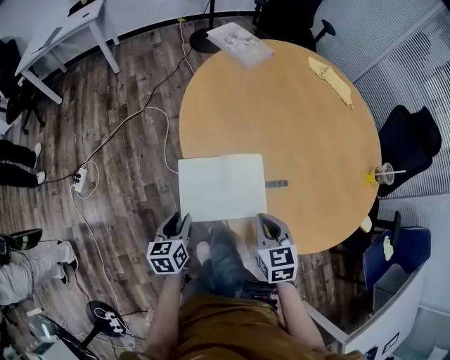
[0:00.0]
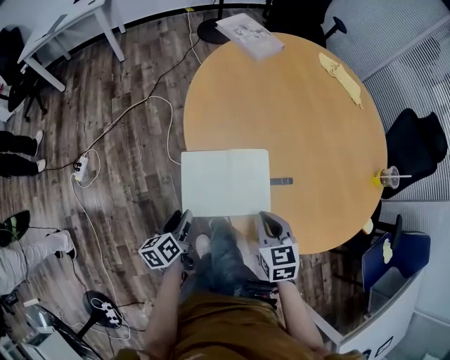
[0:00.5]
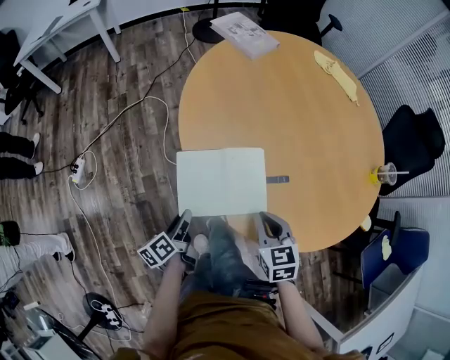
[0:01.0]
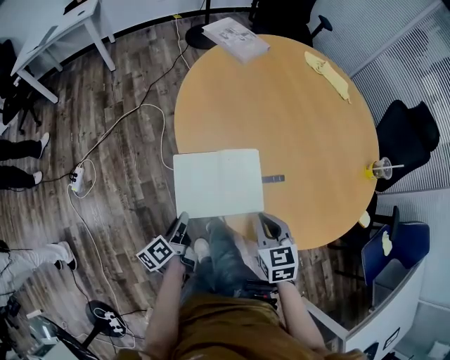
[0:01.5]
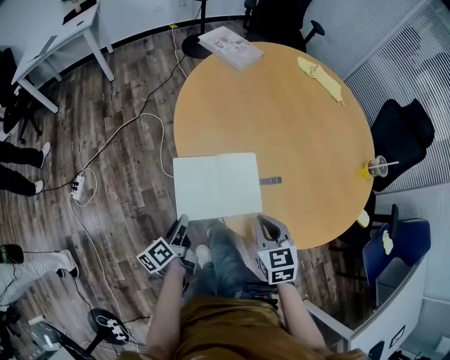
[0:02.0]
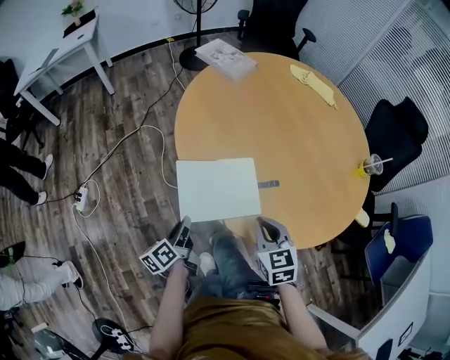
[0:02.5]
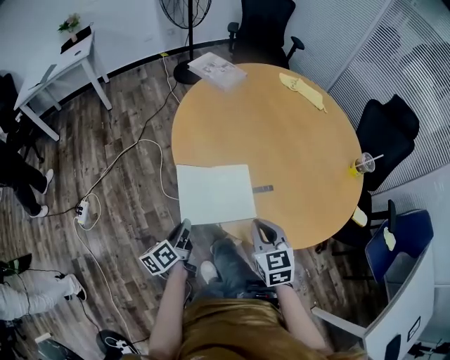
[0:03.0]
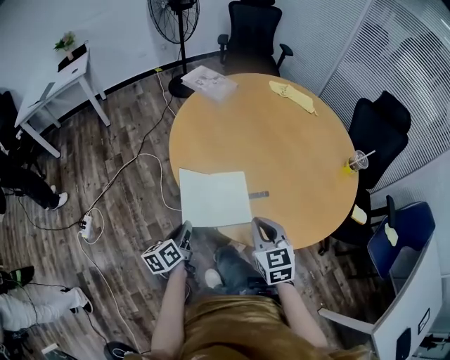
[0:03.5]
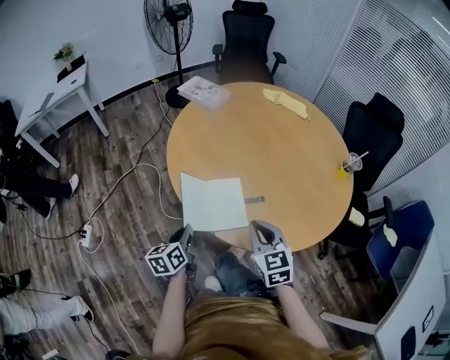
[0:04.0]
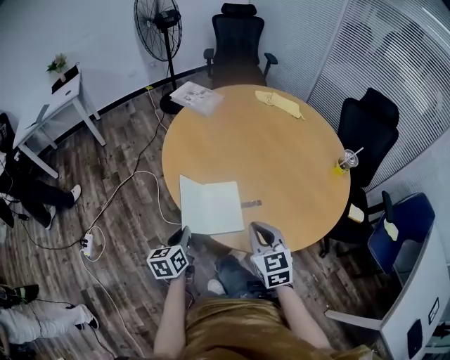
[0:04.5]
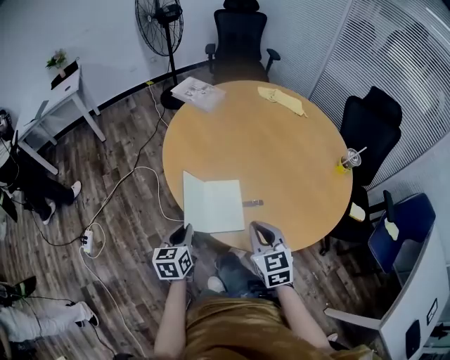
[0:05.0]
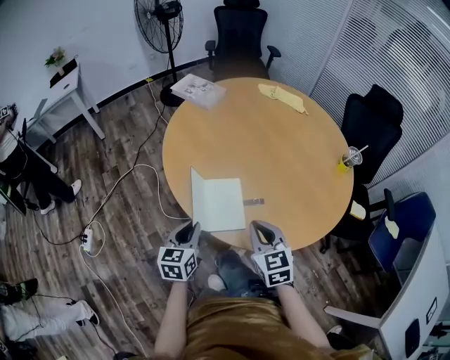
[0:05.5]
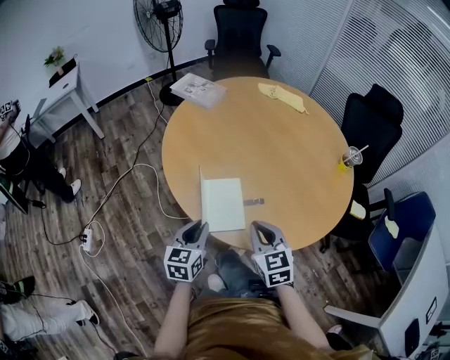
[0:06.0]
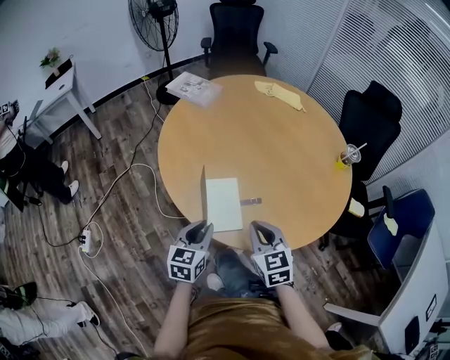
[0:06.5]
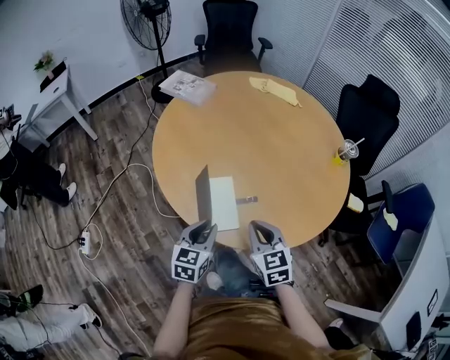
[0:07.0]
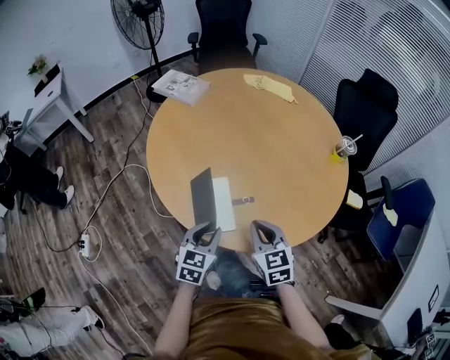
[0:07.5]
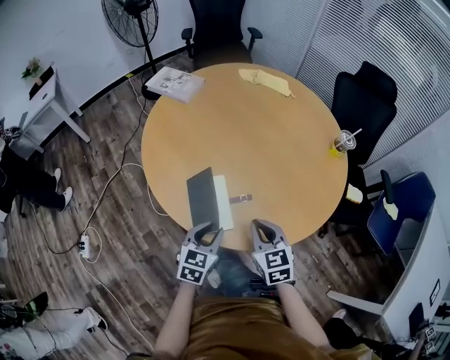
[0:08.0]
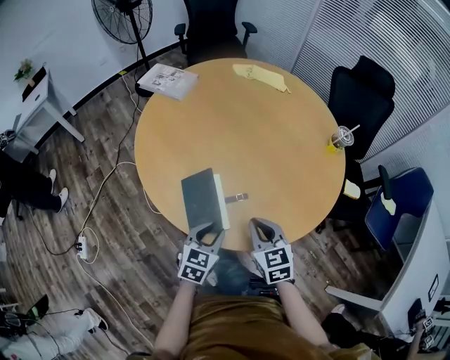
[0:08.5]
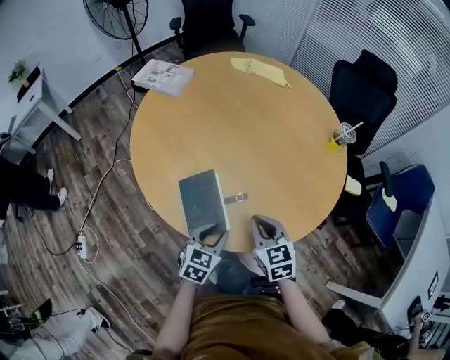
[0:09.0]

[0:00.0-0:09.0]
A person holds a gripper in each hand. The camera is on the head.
0:00.0 to 0:02.0: The left gripper changes its angle by roughly 40 degrees.
0:02.0 to 0:04.5: Both grippers travel together upward, about 10 cm. The left gripper twists some 40 degrees clockwise, seen from behind.
0:04.5 to 0:07.0: The left gripper heads to the right, covering some 10 cm, and swivels roughly 30 degrees.
0:07.0 to 0:09.0: The right gripper moves approximately 5 cm, while the left gripper heads to the right and downward, covering some 10 cm, and rotates about 20 degrees.

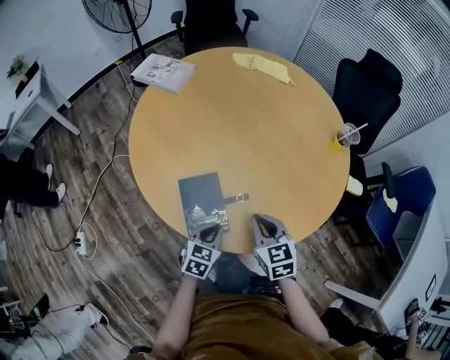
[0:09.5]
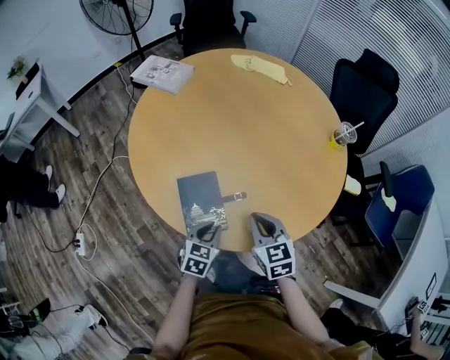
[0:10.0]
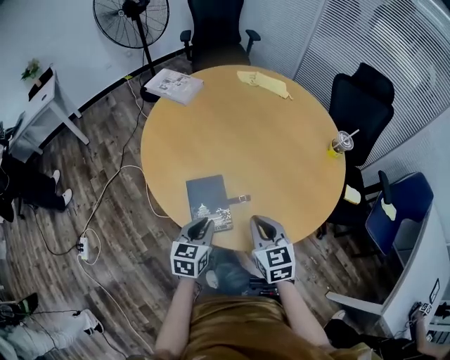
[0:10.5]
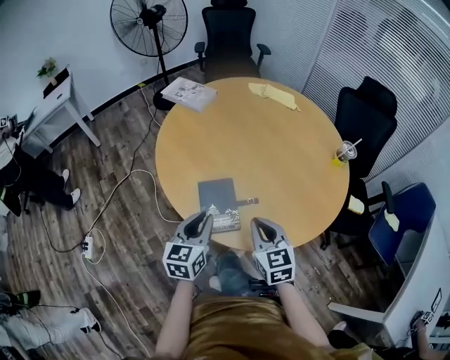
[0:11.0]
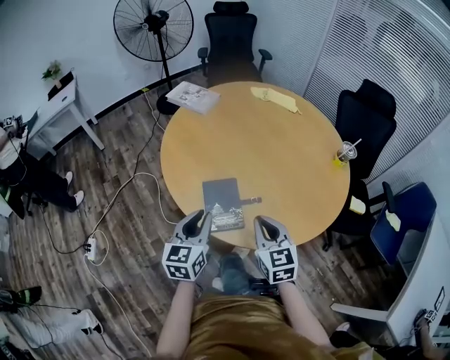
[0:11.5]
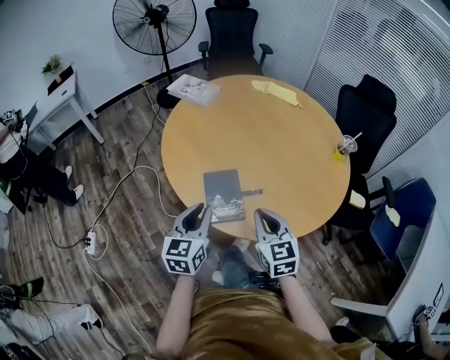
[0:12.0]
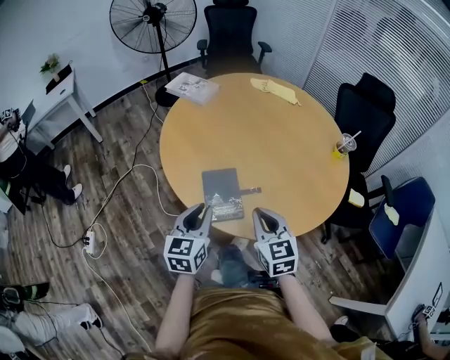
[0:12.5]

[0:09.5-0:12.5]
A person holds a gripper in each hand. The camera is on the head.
0:09.5 to 0:11.0: The right gripper travels upward and backward by approximately 10 cm; the left gripper is displaced upward and to the left by approximately 20 cm, and turns by approximately 30 degrees.
0:11.0 to 0:12.5: The grippers make only small movements.

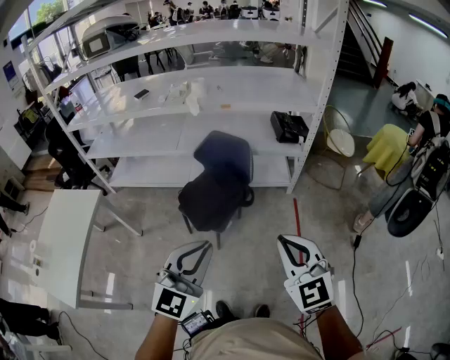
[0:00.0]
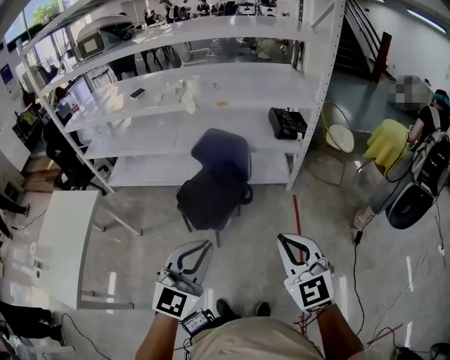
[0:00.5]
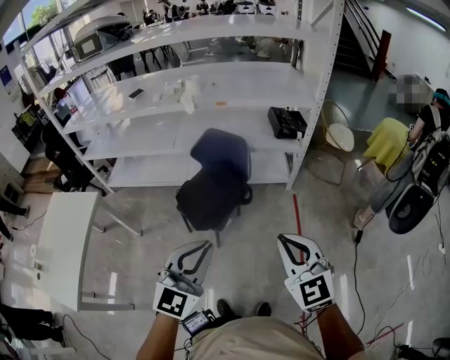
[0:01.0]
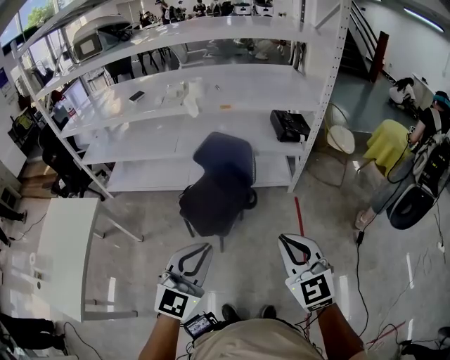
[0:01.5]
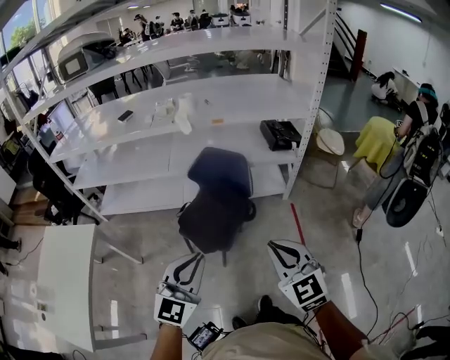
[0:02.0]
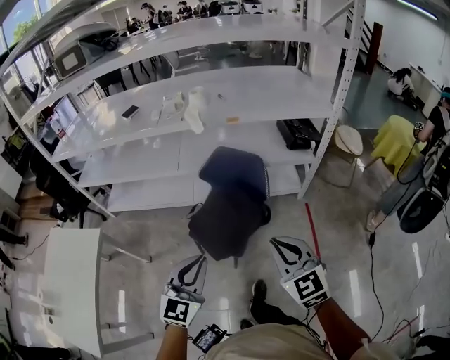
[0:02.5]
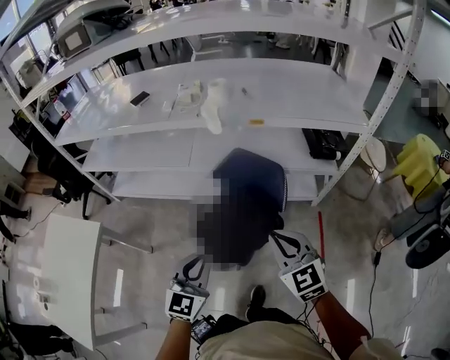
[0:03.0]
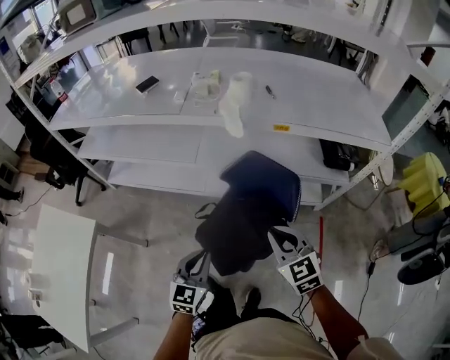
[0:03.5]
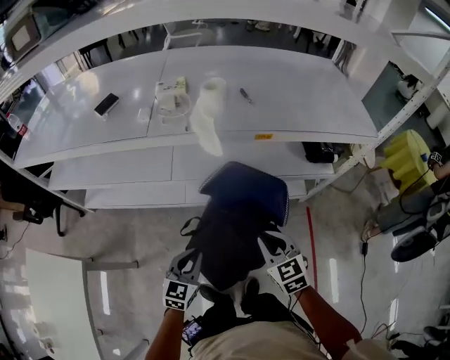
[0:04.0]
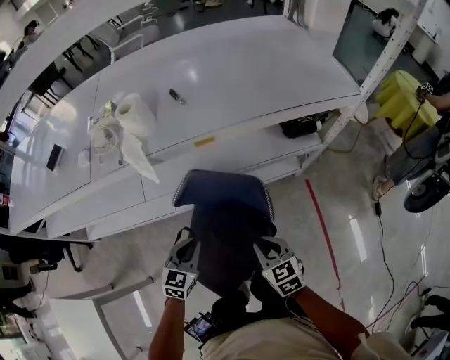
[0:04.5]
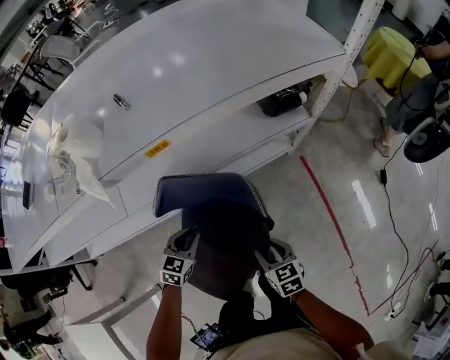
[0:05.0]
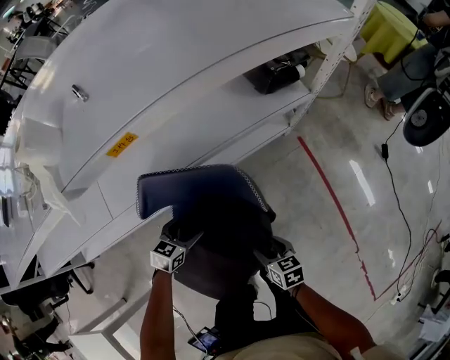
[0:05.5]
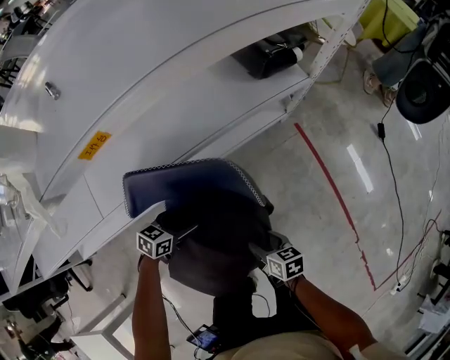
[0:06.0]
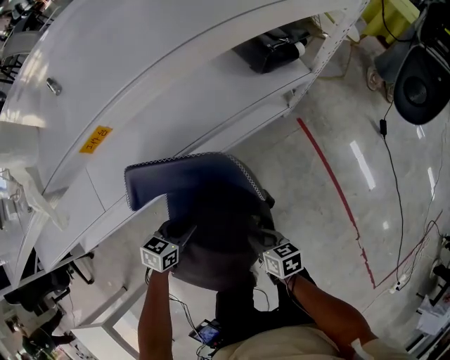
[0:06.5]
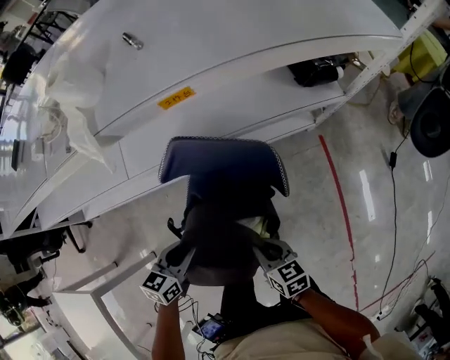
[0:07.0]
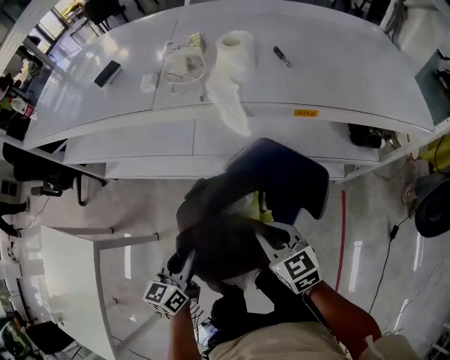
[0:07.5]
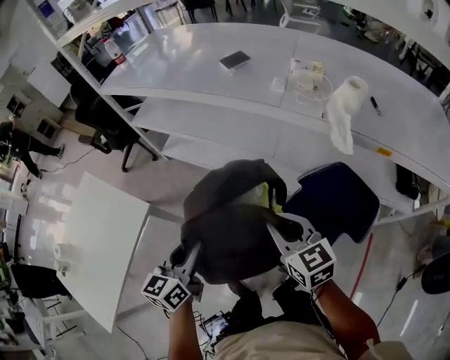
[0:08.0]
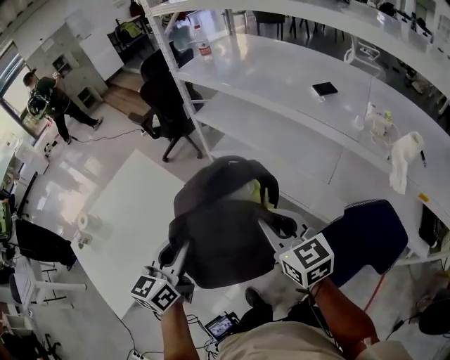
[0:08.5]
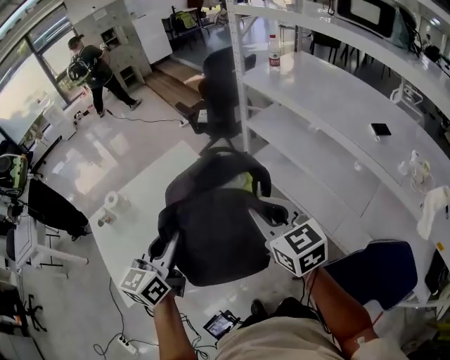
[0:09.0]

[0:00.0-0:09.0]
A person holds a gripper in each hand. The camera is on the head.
0:00.0 to 0:02.0: Both grippers move to the left and forward, some 10 cm.
0:02.0 to 0:04.5: The pair of grippers is taken forward, some 40 cm. The grippers both shift downward by some 30 cm. The right gripper swivels about 30 degrees, while the left gripper turns by roughly 30 degrees.
0:04.5 to 0:07.0: Both grippers move downward and backward, some 10 cm. The right gripper turns by about 20 degrees, and opens, then closes once more. The left gripper swivels roughly 20 degrees, and opens, then closes again.
0:07.0 to 0:09.0: The pair of grippers is taken some 80 cm. The left gripper turns by roughly 80 degrees; the right gripper turns by some 80 degrees.

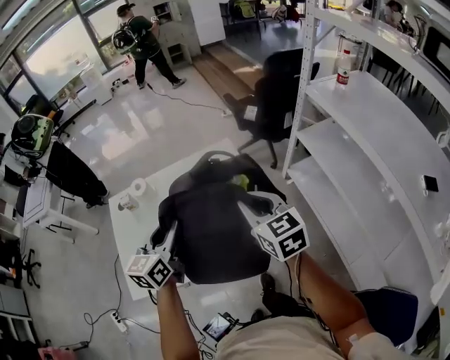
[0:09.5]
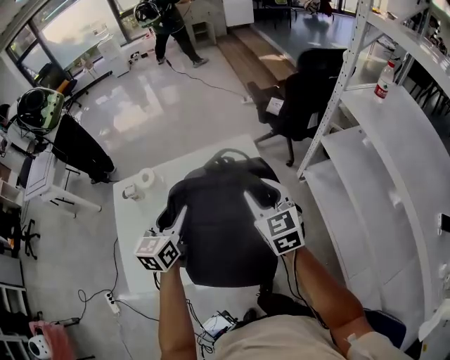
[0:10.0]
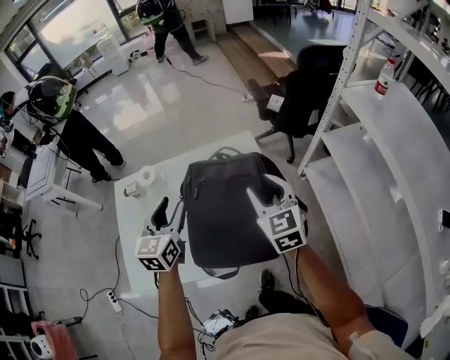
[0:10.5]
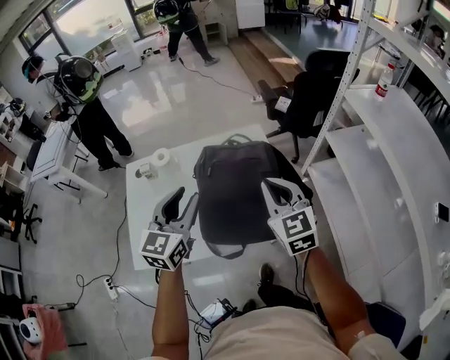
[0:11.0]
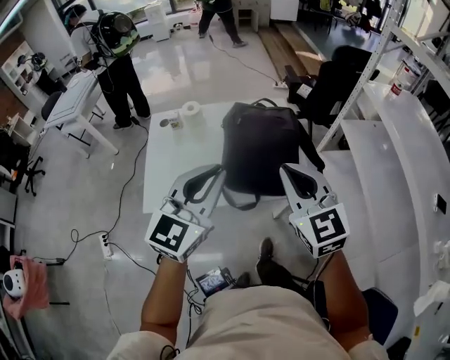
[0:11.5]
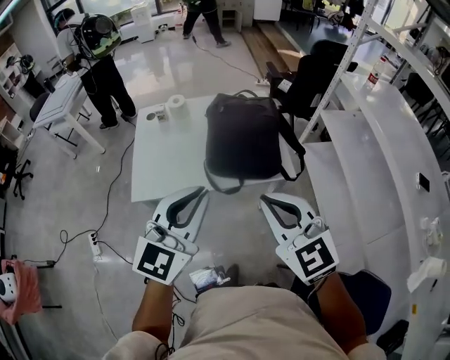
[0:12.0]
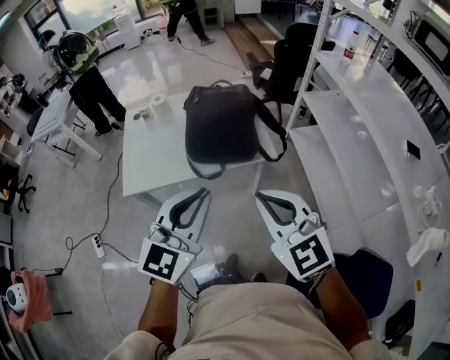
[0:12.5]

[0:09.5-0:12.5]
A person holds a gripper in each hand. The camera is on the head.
0:09.5 to 0:11.0: The right gripper reaches about 10 cm forward, then returns, and opens and closes again. Meanwhile the left gripper goes forward and returns, about 10 cm each way.
0:11.0 to 0:12.5: The two grippers go about 35 cm backward. The left gripper closes up.

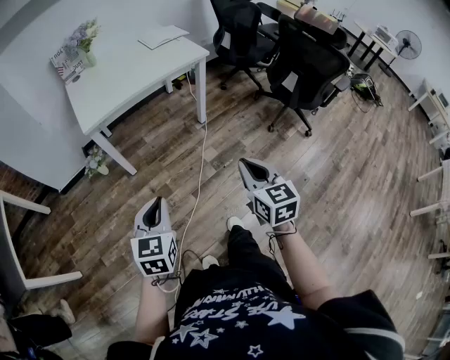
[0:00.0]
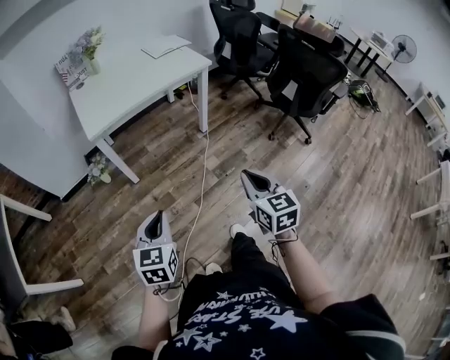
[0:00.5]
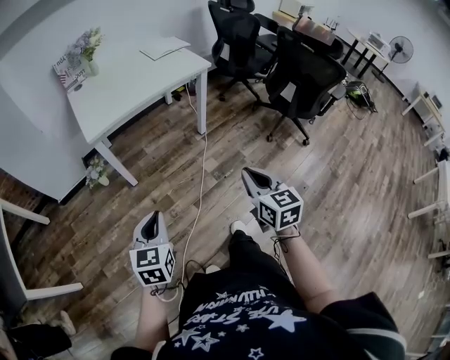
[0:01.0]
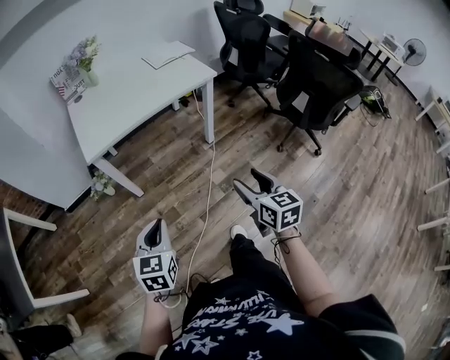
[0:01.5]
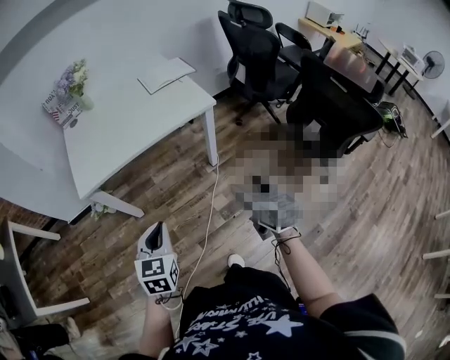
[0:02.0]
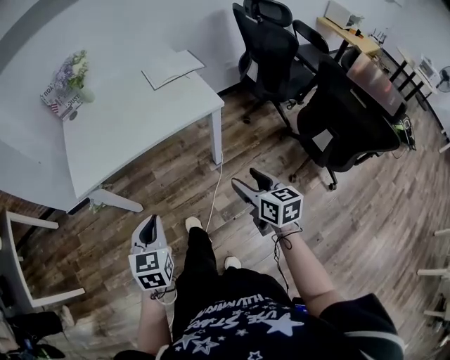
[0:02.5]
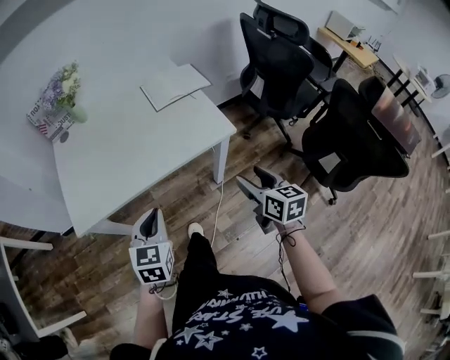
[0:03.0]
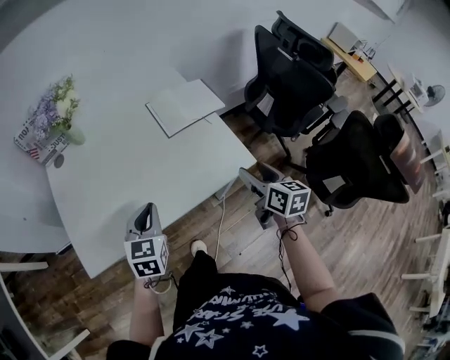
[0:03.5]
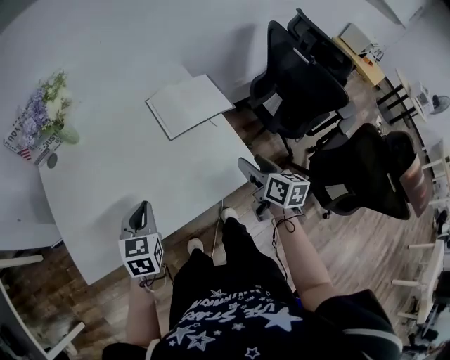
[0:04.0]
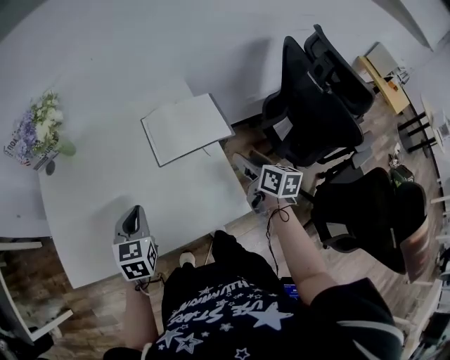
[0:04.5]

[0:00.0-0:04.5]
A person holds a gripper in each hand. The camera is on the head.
0:00.0 to 0:02.0: Both grippers move forward, roughly 25 cm. The right gripper opens.
0:02.0 to 0:04.5: The pair of grippers is taken forward, about 60 cm.
